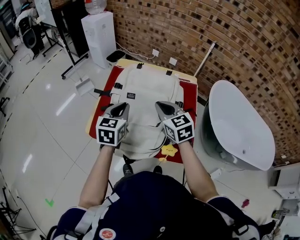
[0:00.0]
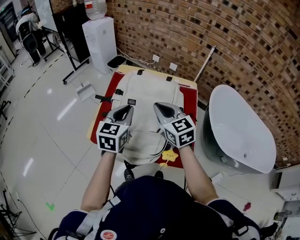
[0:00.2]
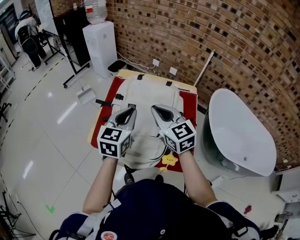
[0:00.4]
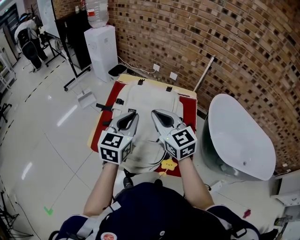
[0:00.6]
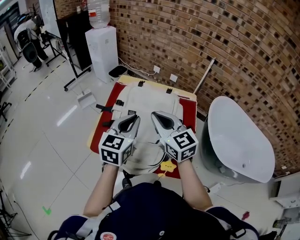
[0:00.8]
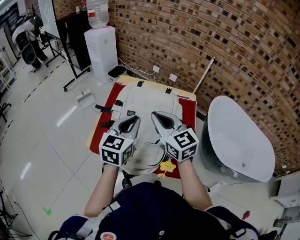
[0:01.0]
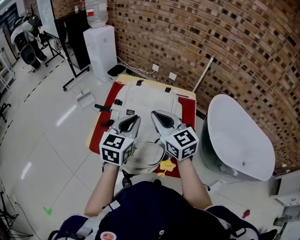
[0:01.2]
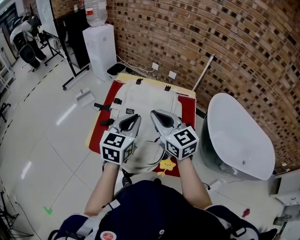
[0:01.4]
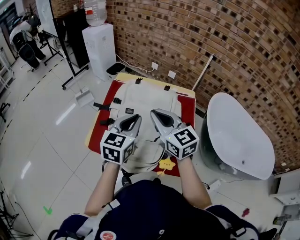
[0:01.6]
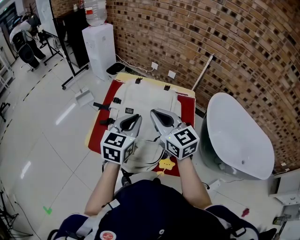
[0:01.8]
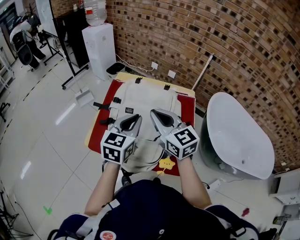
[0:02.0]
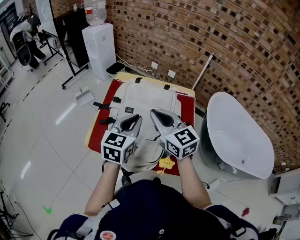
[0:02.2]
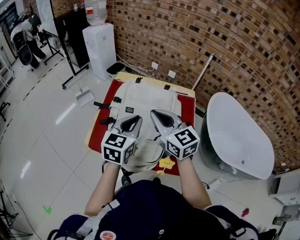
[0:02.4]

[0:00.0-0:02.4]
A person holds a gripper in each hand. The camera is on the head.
0:00.0 to 0:01.2: The right gripper moves upward, roughly 10 cm. The left gripper shifts some 10 cm upward and to the right.
0:01.2 to 0:02.4: The grippers move only a little.

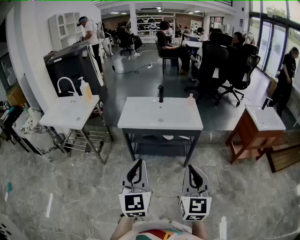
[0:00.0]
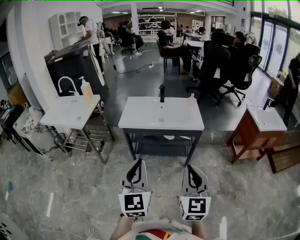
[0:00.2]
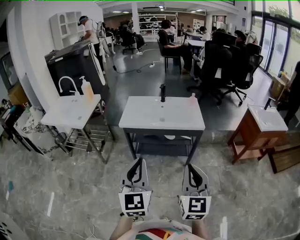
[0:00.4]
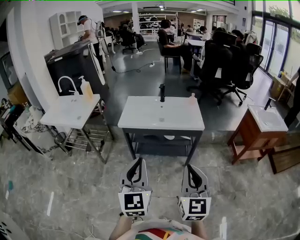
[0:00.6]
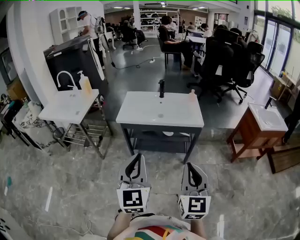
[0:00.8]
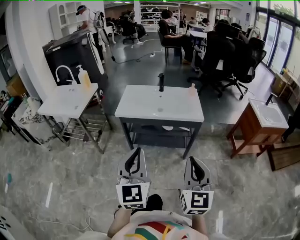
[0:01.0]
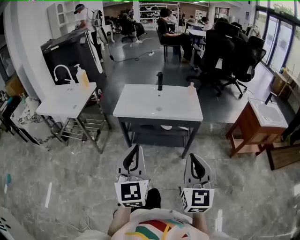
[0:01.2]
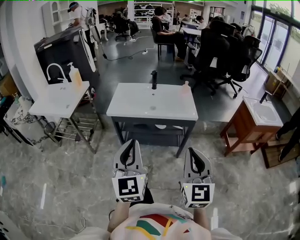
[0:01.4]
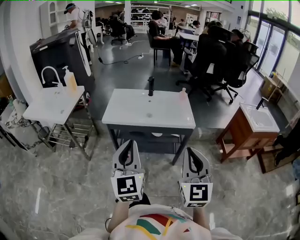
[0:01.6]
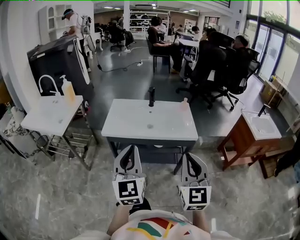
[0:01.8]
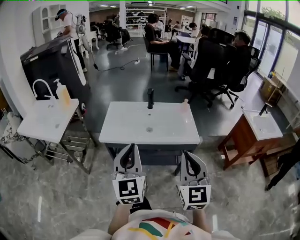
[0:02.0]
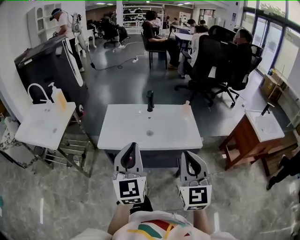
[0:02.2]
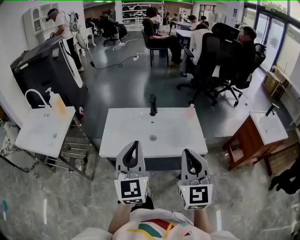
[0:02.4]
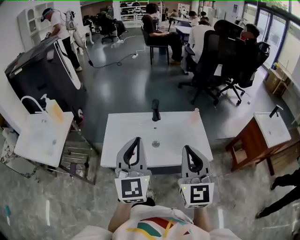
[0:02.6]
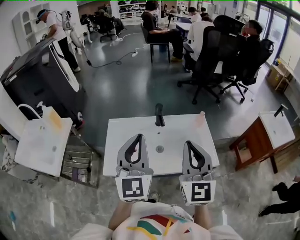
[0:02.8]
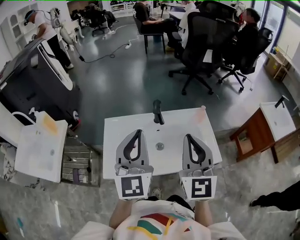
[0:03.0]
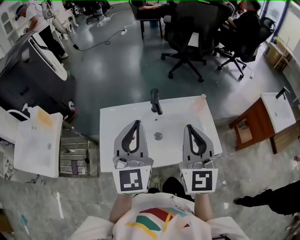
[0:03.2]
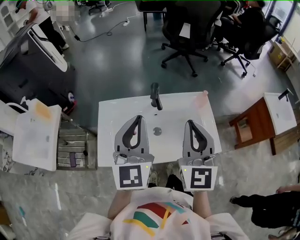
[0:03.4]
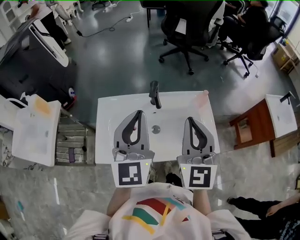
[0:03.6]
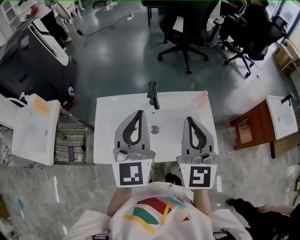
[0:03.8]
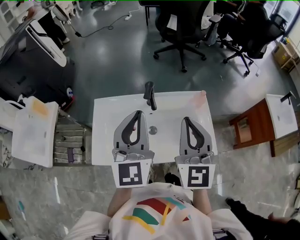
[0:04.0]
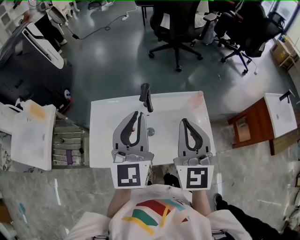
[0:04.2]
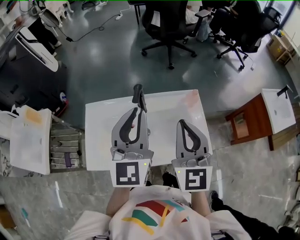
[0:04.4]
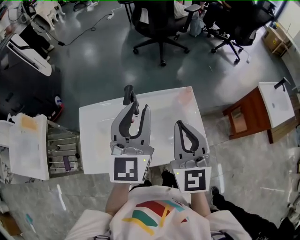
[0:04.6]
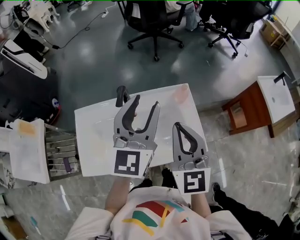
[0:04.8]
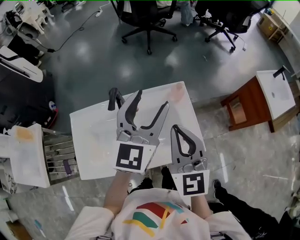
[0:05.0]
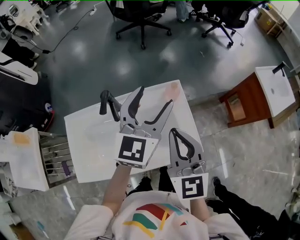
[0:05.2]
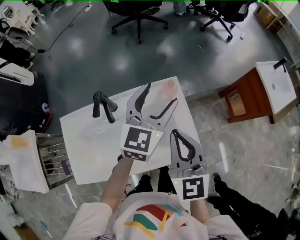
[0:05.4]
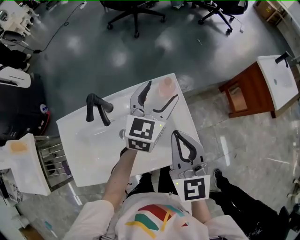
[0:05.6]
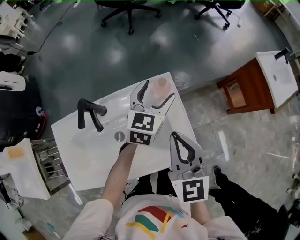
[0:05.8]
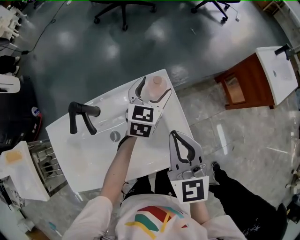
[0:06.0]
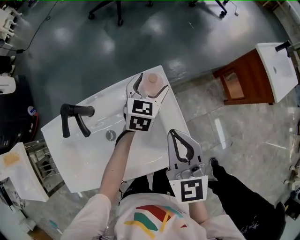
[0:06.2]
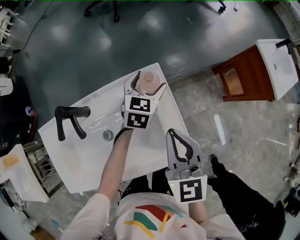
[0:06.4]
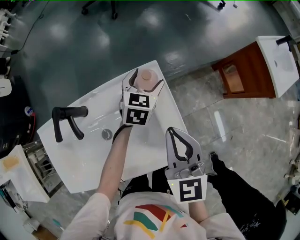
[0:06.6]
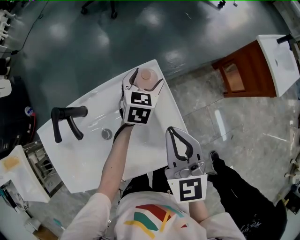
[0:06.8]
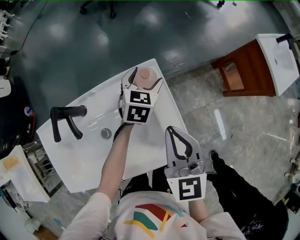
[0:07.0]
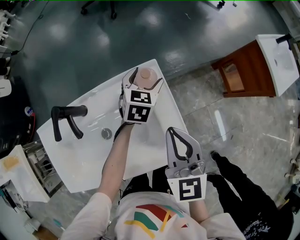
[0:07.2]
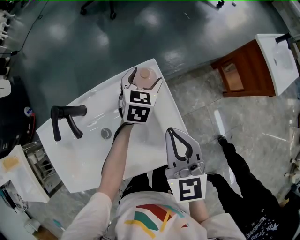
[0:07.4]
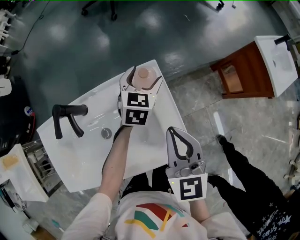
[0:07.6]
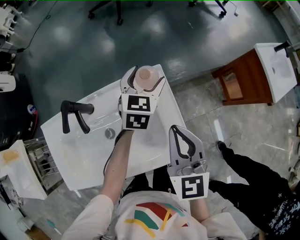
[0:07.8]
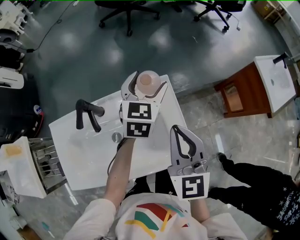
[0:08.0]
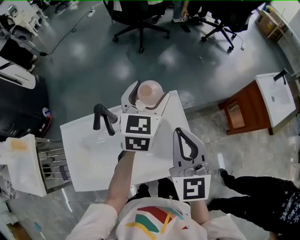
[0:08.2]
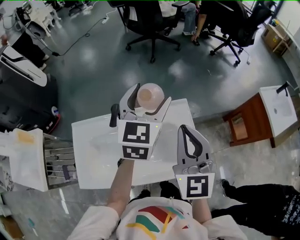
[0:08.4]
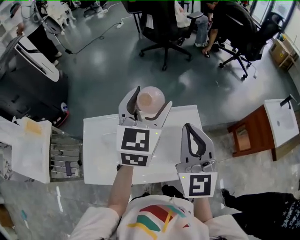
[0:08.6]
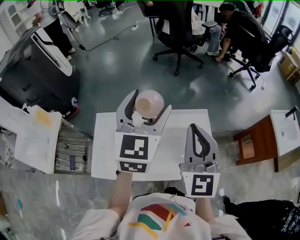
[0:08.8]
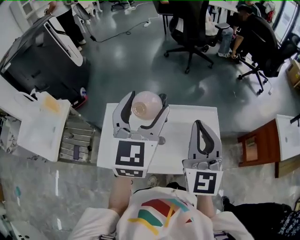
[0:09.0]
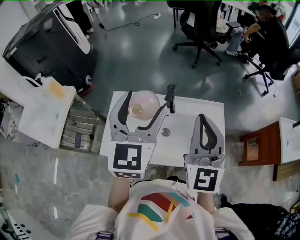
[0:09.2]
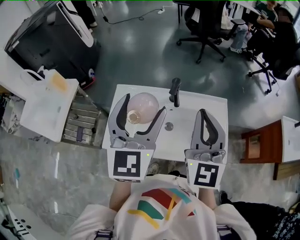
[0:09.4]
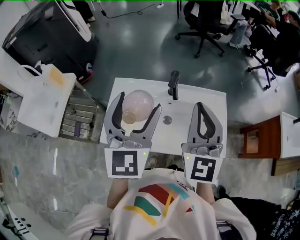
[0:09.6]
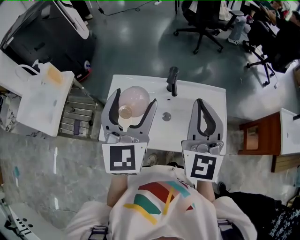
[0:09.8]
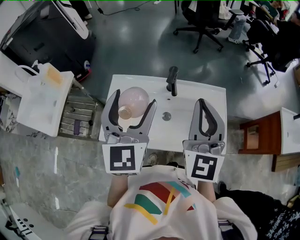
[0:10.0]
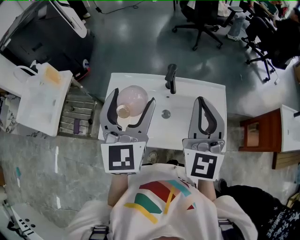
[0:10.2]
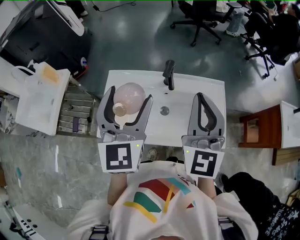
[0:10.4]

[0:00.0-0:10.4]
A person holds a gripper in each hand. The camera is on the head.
0:00.0 to 0:01.4: The grippers both shift forward by about 5 cm.
0:01.4 to 0:03.0: The two grippers travel together, forward, approximately 50 cm.
0:03.0 to 0:04.4: The grippers both shift forward and to the right by roughly 10 cm.
0:04.4 to 0:06.0: The right gripper moves downward, to the right and forward, some 20 cm, and changes its angle by some 20 degrees, while the left gripper moves downward, forward and to the right, approximately 40 cm, tilts its fingers approximately 30 degrees downward, and opens.
0:06.0 to 0:07.4: The left gripper travels downward by roughly 5 cm.
0:07.4 to 0:09.0: The left gripper heads upward, to the left and backward, covering approximately 50 cm, and tilts its fingers some 30 degrees upward. Meanwhile the right gripper heads upward and to the left, covering some 30 cm, and swivels some 30 degrees.
0:09.0 to 0:10.4: The left gripper is displaced to the left and backward by about 10 cm.

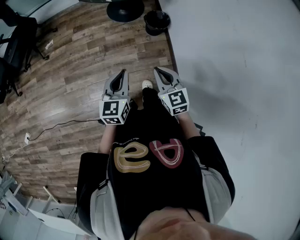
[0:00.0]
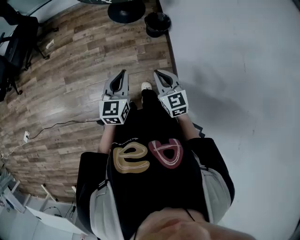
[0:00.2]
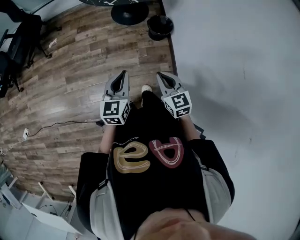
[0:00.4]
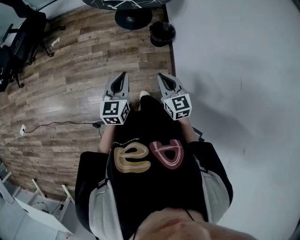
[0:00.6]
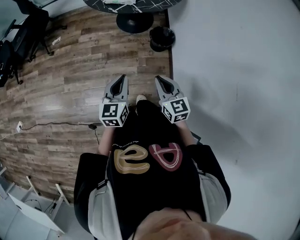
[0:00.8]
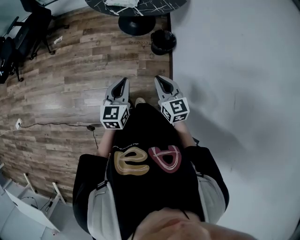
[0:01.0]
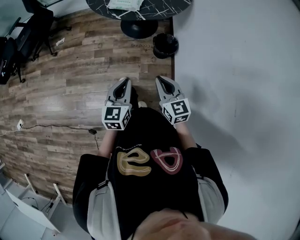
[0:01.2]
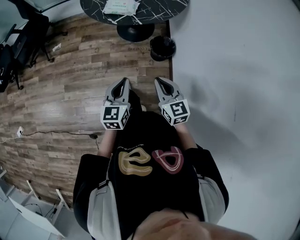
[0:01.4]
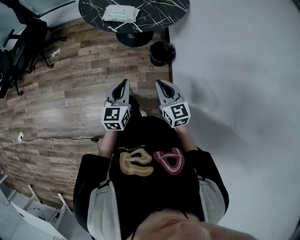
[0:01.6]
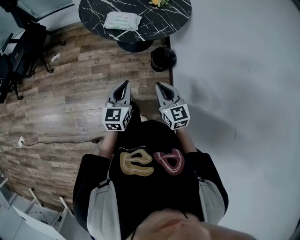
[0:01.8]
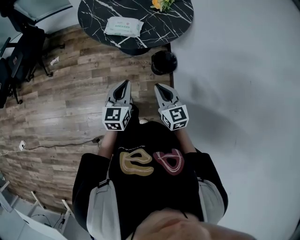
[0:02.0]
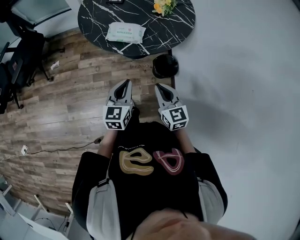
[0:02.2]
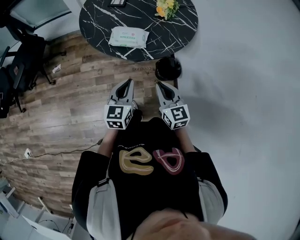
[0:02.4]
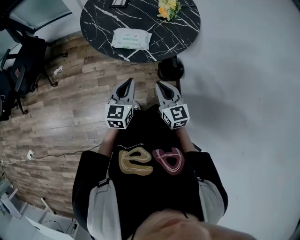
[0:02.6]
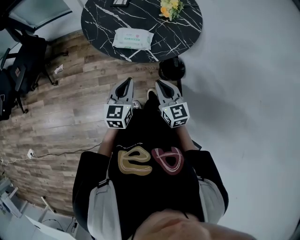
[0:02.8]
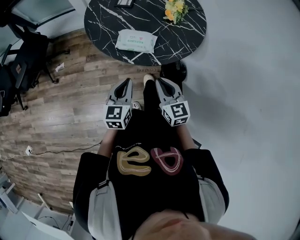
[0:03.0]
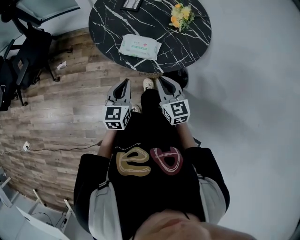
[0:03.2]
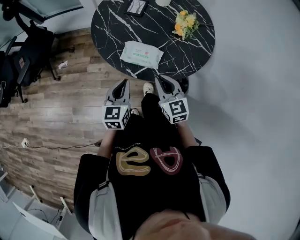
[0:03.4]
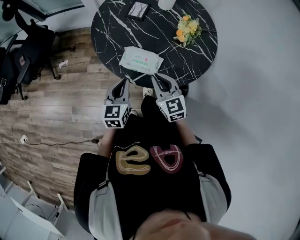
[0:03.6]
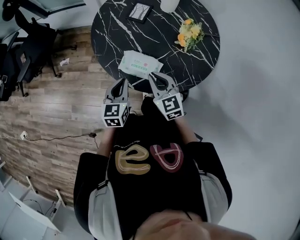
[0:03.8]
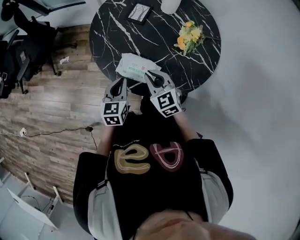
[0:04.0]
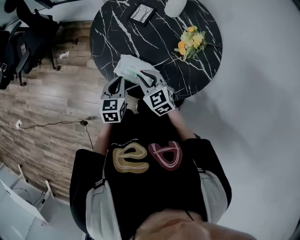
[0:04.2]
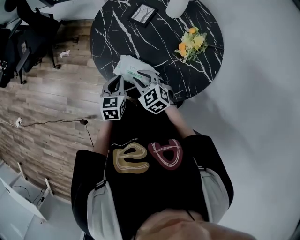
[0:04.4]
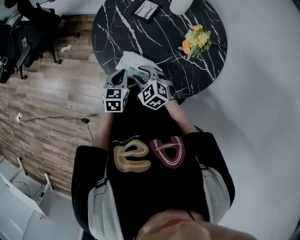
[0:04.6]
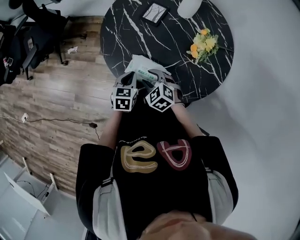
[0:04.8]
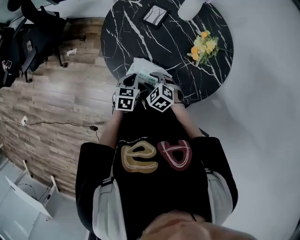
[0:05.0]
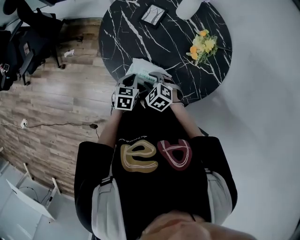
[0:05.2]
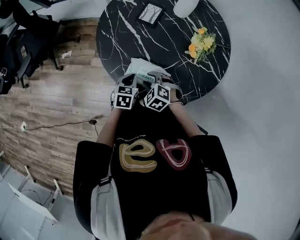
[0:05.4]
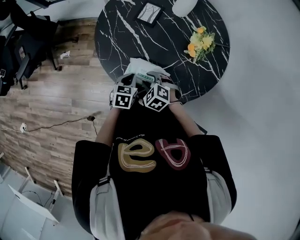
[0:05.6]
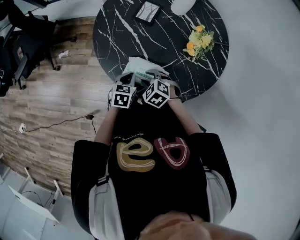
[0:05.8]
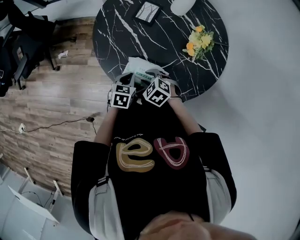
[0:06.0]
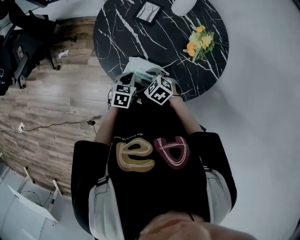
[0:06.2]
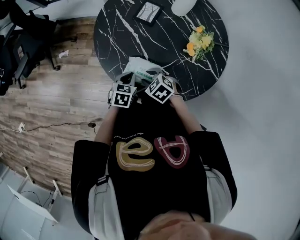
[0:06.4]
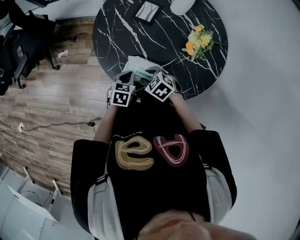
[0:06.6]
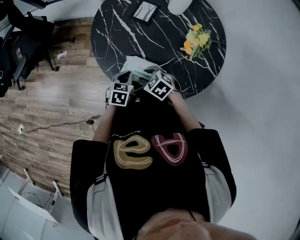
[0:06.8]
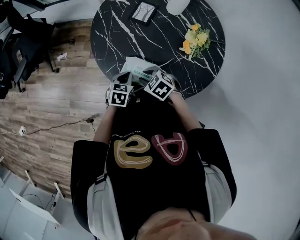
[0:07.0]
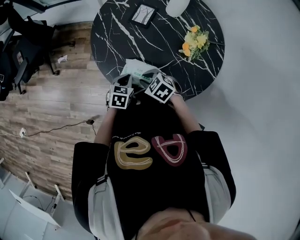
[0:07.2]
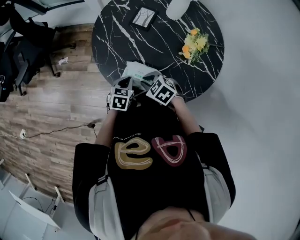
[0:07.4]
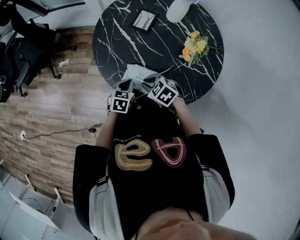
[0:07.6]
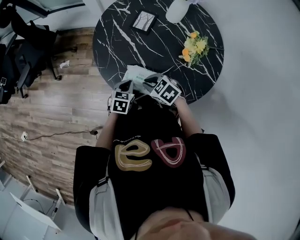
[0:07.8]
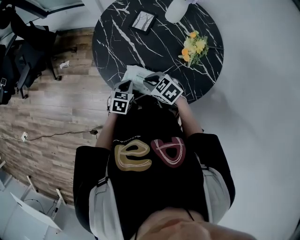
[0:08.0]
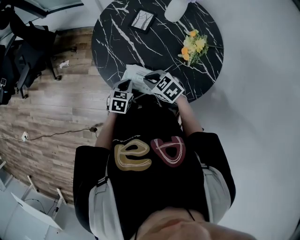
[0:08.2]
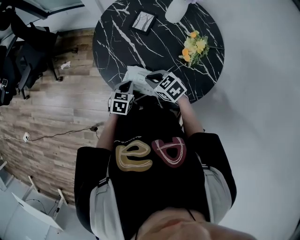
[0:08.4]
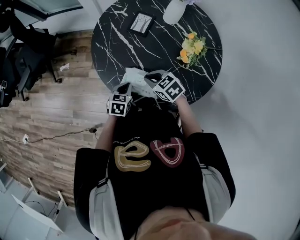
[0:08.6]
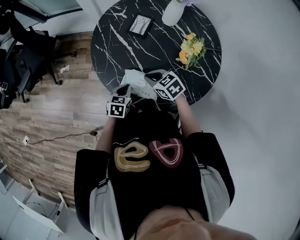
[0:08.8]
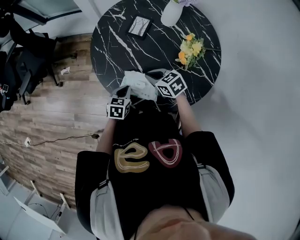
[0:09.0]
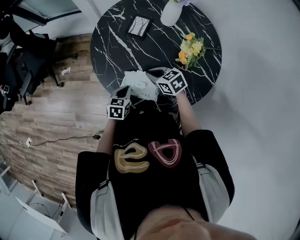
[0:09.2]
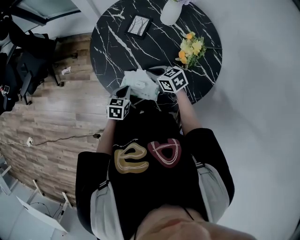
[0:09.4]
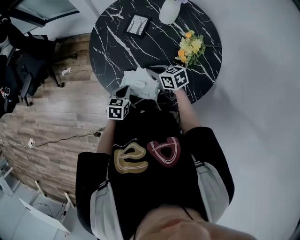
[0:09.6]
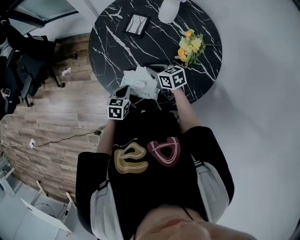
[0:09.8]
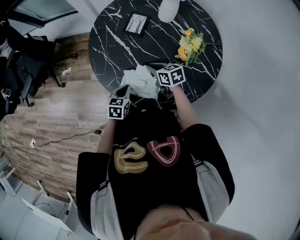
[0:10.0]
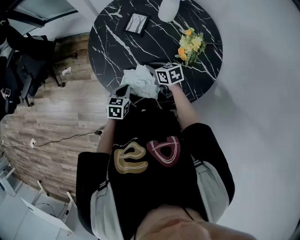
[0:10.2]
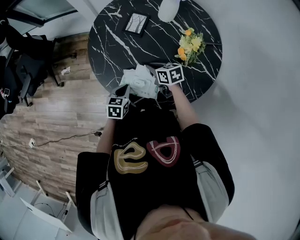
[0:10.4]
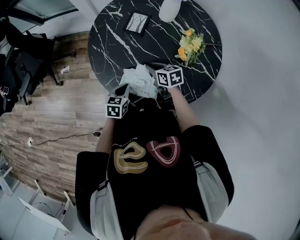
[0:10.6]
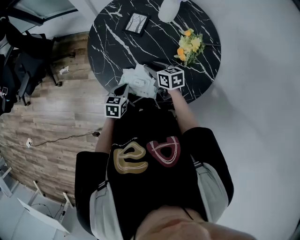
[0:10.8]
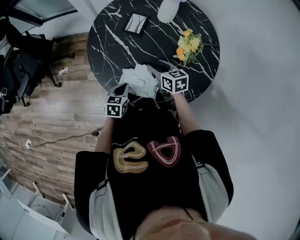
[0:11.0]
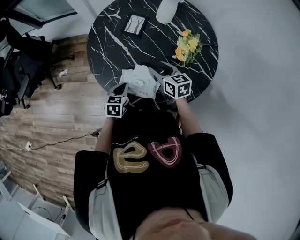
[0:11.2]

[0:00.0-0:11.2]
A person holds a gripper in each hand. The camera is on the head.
0:00.0 to 0:01.6: The left gripper shifts approximately 15 cm forward; the right gripper travels forward and to the right by approximately 20 cm.
0:01.6 to 0:03.2: Both grippers travel together forward, about 25 cm.
0:03.2 to 0:04.8: Both grippers travel together forward and downward, approximately 20 cm. The right gripper tilts its fingers about 30 degrees downward, and opens its fingers. The left gripper rotates approximately 20 degrees.
0:04.8 to 0:06.4: There are only small adjustments of the grippers.
0:06.4 to 0:08.0: The right gripper closes its fingers.
0:08.0 to 0:09.6: The right gripper shifts some 10 cm forward and to the right, and changes its angle by roughly 30 degrees.
0:09.6 to 0:11.2: The right gripper moves roughly 5 cm, swivels about 20 degrees, and opens its fingers.
